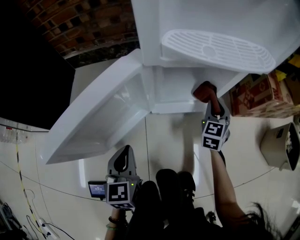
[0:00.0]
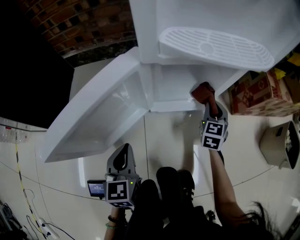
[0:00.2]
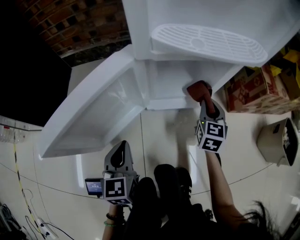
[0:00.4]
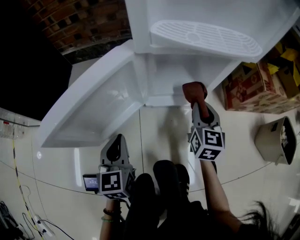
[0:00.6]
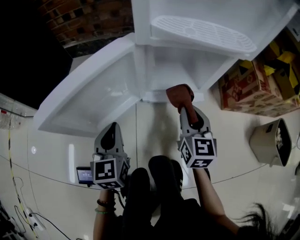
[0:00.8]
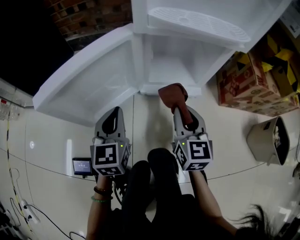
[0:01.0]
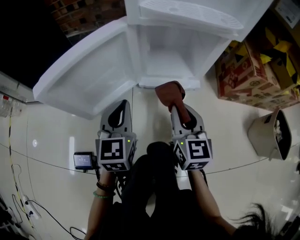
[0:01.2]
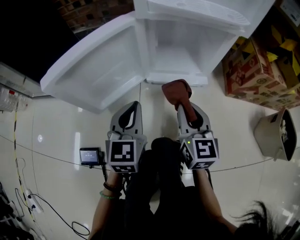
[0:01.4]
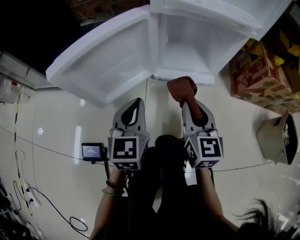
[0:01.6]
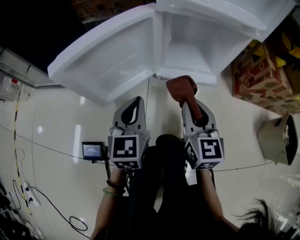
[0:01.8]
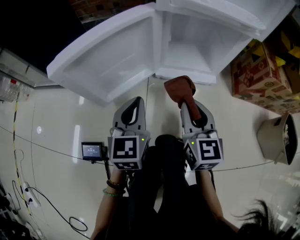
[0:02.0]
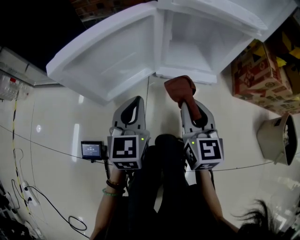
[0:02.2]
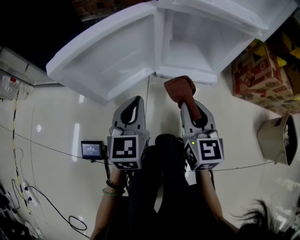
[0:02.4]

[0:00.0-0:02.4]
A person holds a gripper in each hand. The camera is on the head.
0:00.0 to 0:01.2: The right gripper travels backward, to the left and upward by roughly 20 cm, and rotates roughly 40 degrees; the left gripper is displaced to the right and upward by roughly 10 cm.
0:01.2 to 0:02.4: The grippers make only small movements.

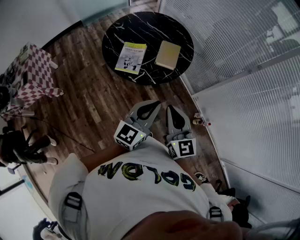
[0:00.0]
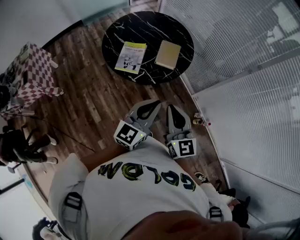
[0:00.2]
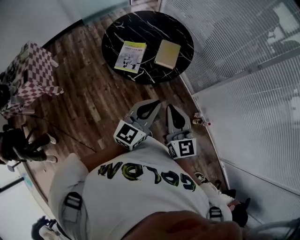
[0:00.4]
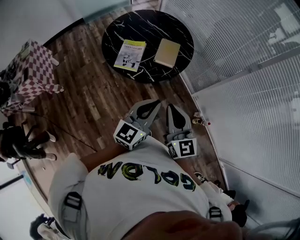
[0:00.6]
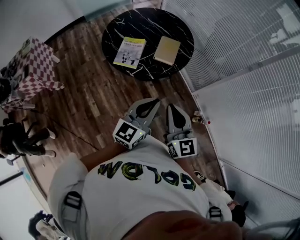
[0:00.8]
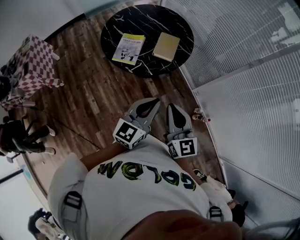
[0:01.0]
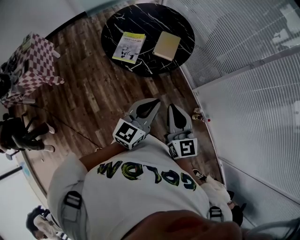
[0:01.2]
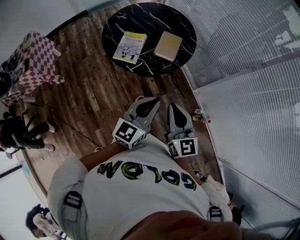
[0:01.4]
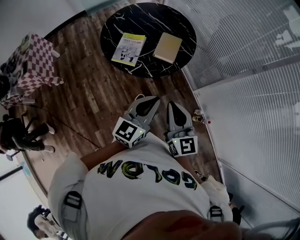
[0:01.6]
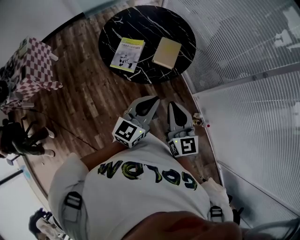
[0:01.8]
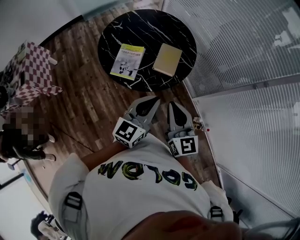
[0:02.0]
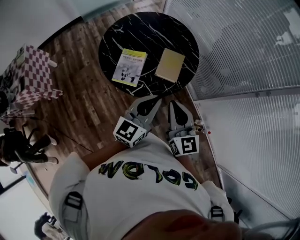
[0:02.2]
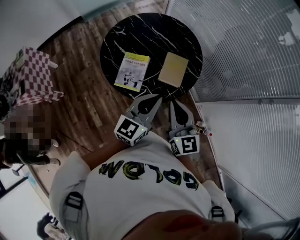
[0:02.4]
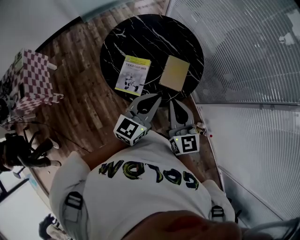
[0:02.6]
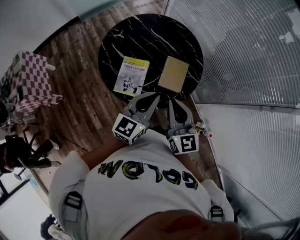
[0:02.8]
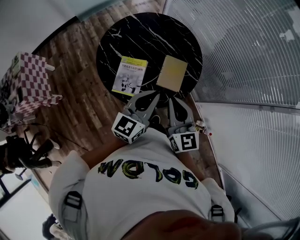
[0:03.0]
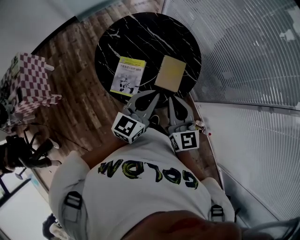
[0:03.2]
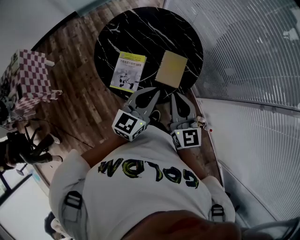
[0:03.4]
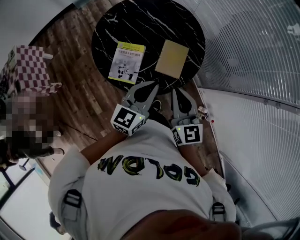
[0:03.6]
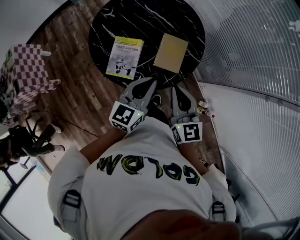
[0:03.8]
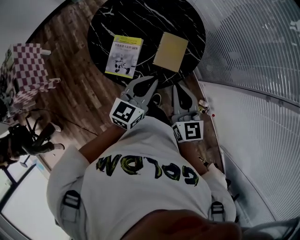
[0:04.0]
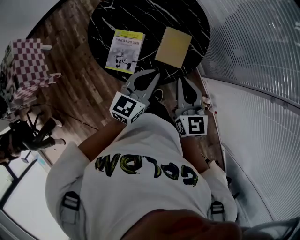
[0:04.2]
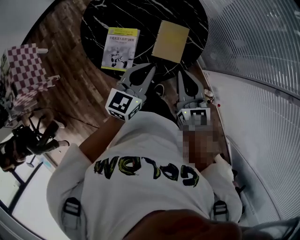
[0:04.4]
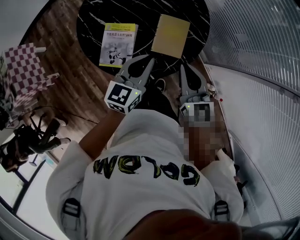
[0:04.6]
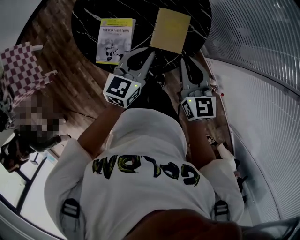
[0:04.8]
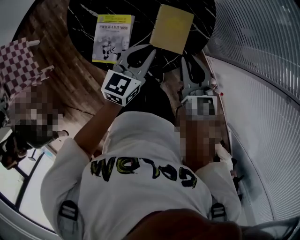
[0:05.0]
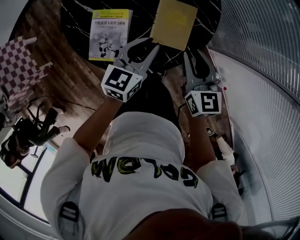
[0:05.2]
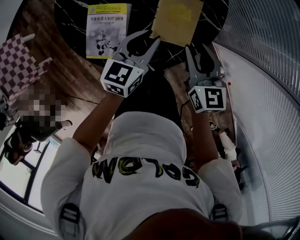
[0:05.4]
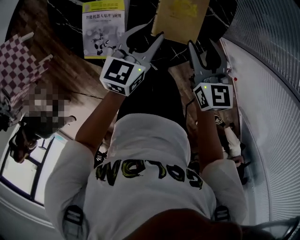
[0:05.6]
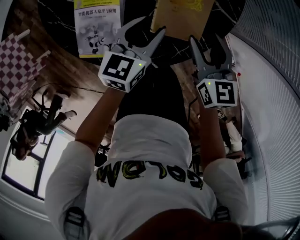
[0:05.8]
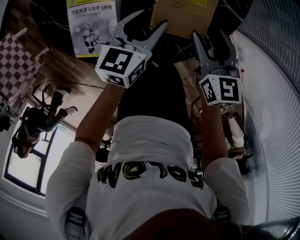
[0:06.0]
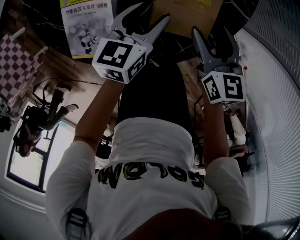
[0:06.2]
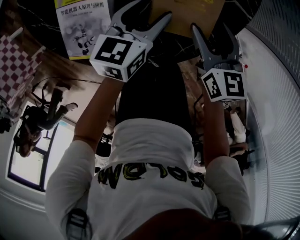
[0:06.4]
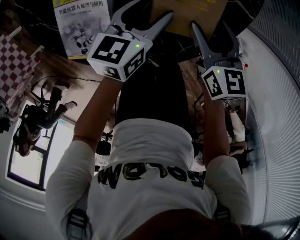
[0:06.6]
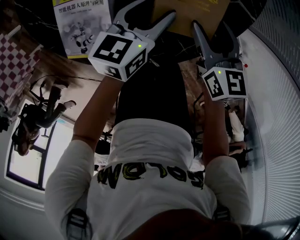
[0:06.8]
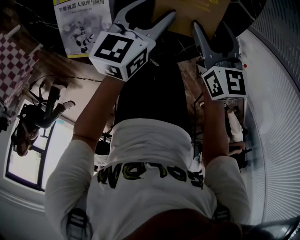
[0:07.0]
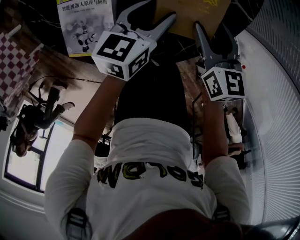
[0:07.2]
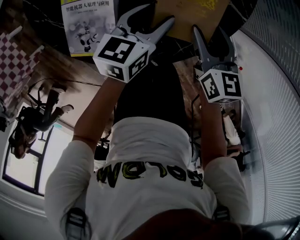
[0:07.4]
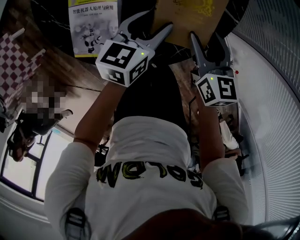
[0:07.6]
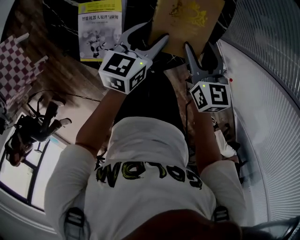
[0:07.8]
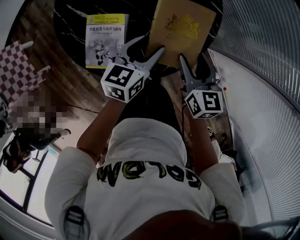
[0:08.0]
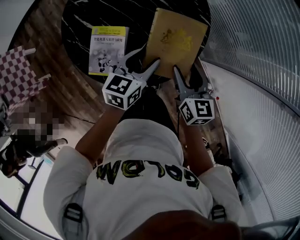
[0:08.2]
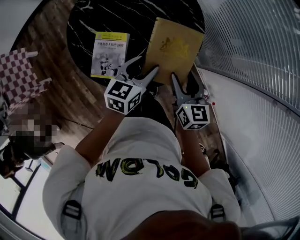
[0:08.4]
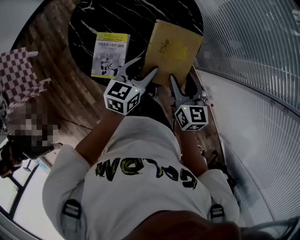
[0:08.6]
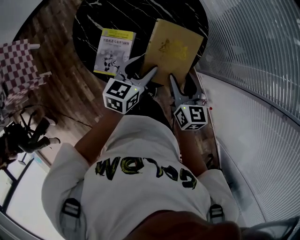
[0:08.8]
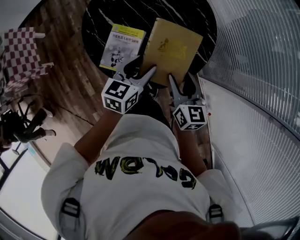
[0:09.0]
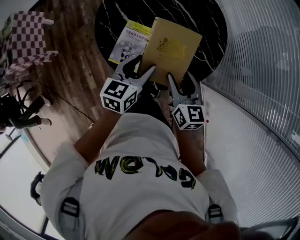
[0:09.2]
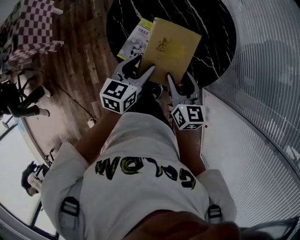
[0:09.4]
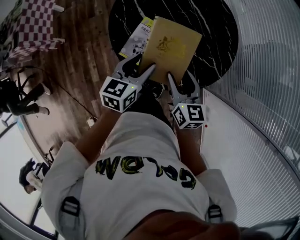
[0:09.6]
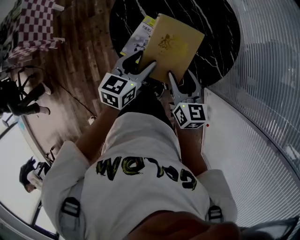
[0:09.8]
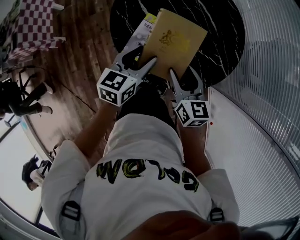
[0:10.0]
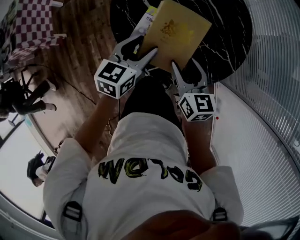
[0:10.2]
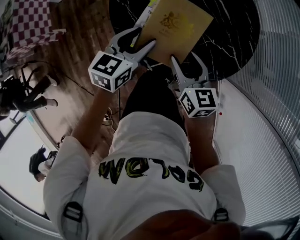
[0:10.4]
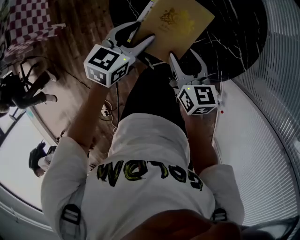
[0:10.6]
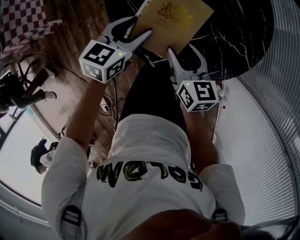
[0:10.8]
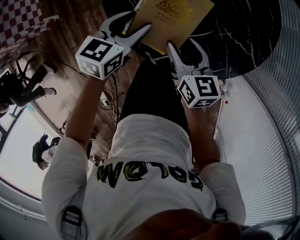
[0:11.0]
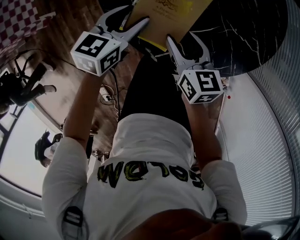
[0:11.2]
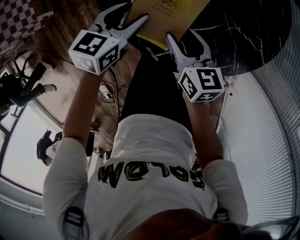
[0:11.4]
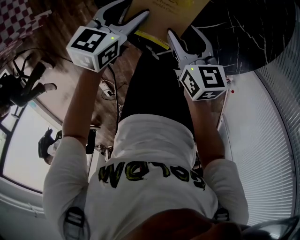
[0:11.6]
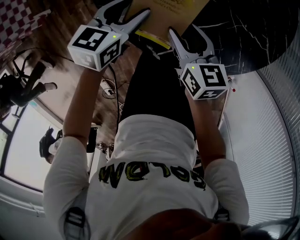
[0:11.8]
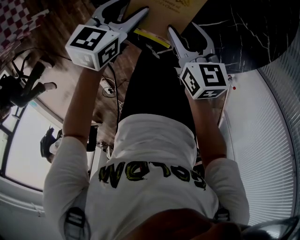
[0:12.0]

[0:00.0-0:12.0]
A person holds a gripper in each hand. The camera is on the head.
0:00.0 to 0:01.6: Both grippers travel together to the right, approximately 5 cm.
0:01.6 to 0:03.0: The two grippers go roughly 25 cm forward.
0:03.0 to 0:04.4: The left gripper goes about 10 cm downward, while the right gripper shifts about 10 cm downward and to the right.
0:04.4 to 0:06.0: The two grippers go some 30 cm downward and forward. The right gripper rotates approximately 20 degrees, and opens its fingers. The left gripper changes its angle by some 20 degrees, and opens up.
0:06.0 to 0:07.6: The grippers move only a little.
0:07.6 to 0:09.0: The two grippers go roughly 20 cm upward.
0:09.0 to 0:10.4: The two grippers go roughly 15 cm to the left and downward.
0:10.4 to 0:12.0: The two grippers go about 15 cm downward.

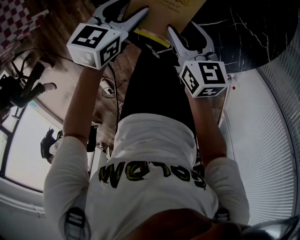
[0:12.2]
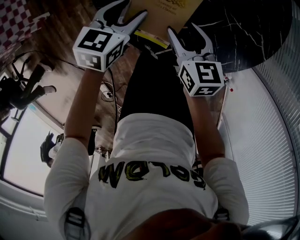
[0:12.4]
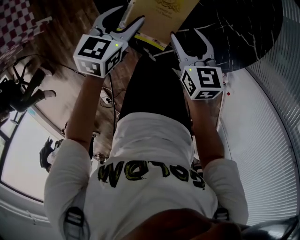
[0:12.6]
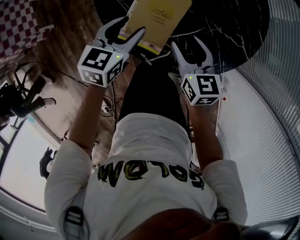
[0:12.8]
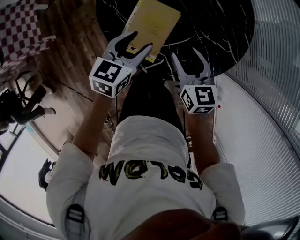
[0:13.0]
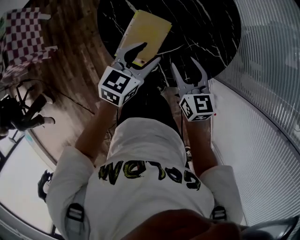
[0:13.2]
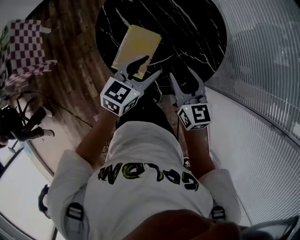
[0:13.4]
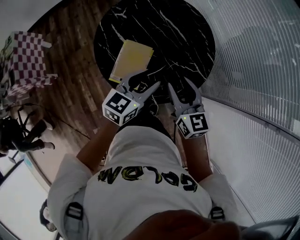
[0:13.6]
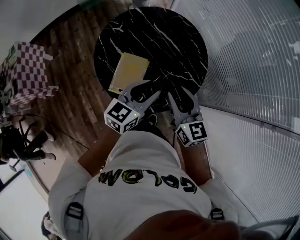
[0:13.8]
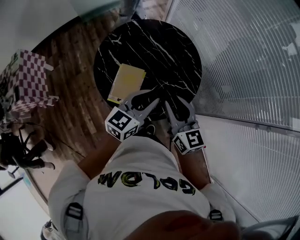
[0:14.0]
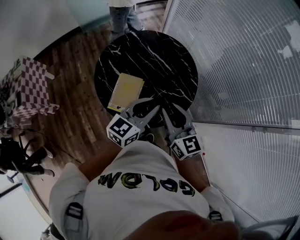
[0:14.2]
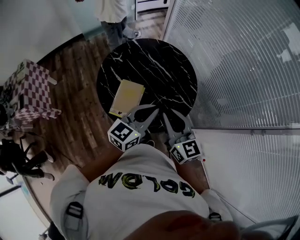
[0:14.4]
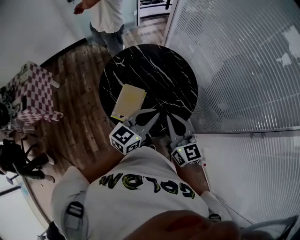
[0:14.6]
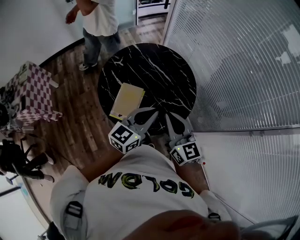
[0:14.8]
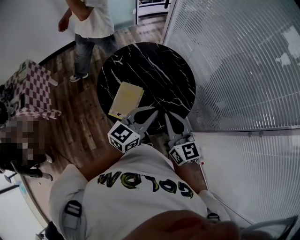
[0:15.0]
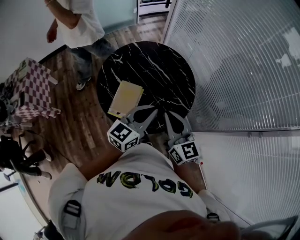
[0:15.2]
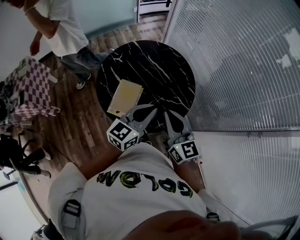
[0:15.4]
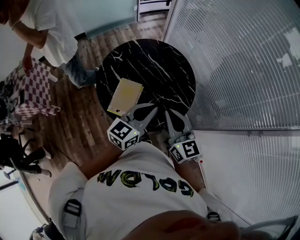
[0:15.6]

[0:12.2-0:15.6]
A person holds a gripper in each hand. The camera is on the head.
0:12.2 to 0:13.8: Both grippers move upward and to the right, roughly 35 cm. The left gripper rotates some 30 degrees. Meanwhile the right gripper swivels approximately 30 degrees.
0:13.8 to 0:15.6: The grippers both shift upward by roughly 10 cm. The left gripper closes up, while the right gripper closes up.

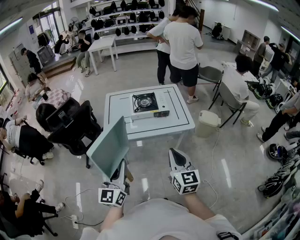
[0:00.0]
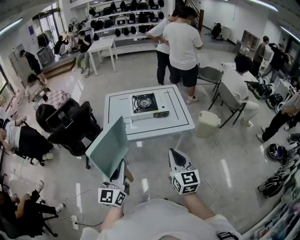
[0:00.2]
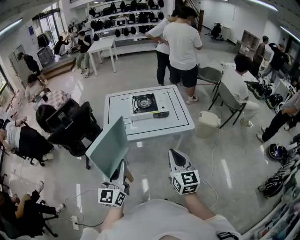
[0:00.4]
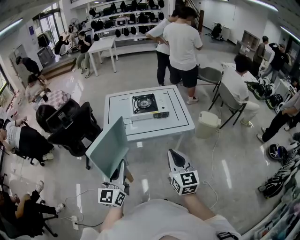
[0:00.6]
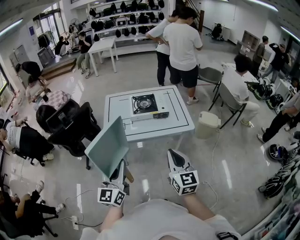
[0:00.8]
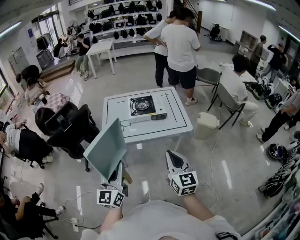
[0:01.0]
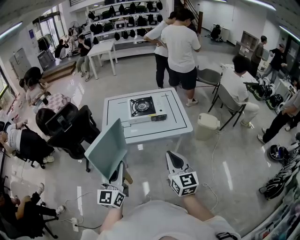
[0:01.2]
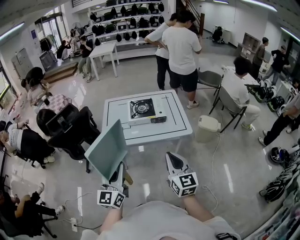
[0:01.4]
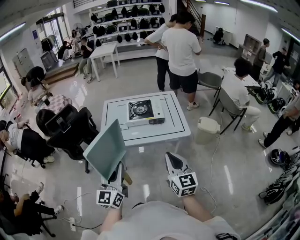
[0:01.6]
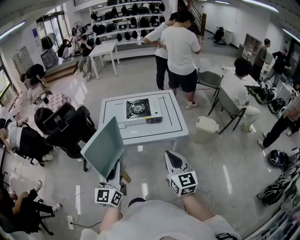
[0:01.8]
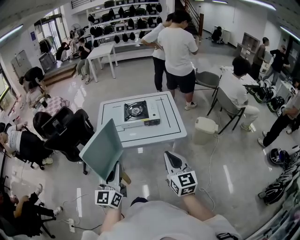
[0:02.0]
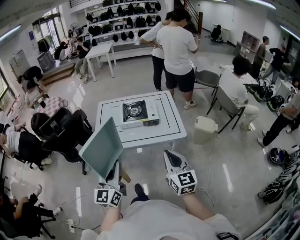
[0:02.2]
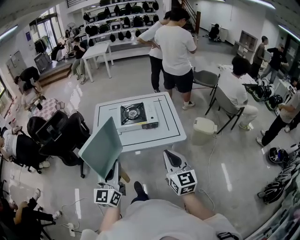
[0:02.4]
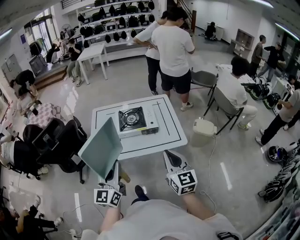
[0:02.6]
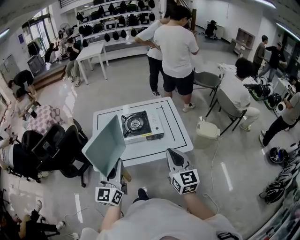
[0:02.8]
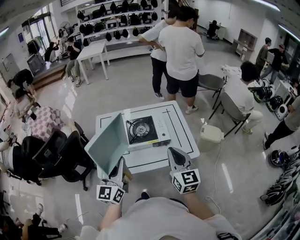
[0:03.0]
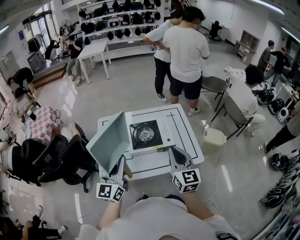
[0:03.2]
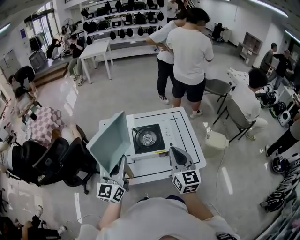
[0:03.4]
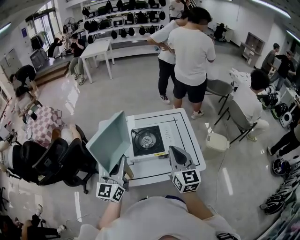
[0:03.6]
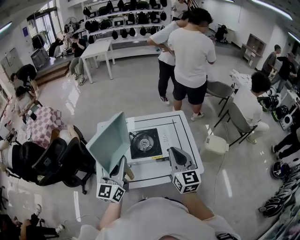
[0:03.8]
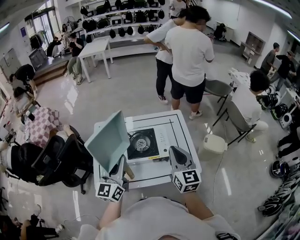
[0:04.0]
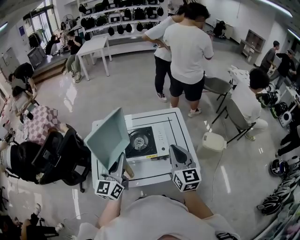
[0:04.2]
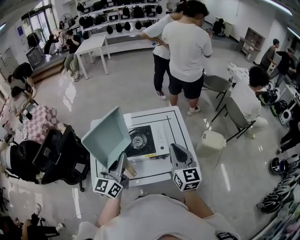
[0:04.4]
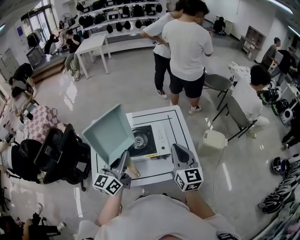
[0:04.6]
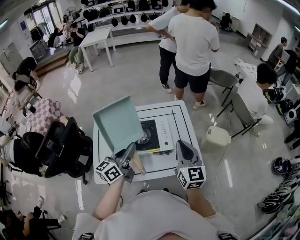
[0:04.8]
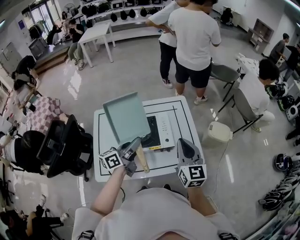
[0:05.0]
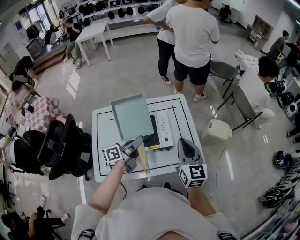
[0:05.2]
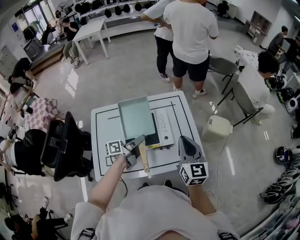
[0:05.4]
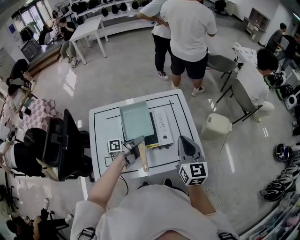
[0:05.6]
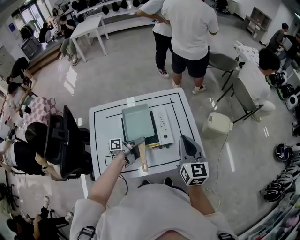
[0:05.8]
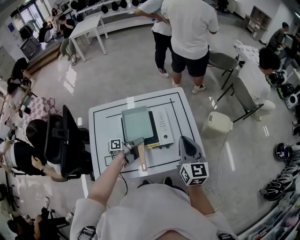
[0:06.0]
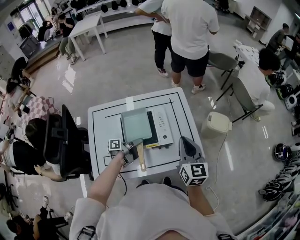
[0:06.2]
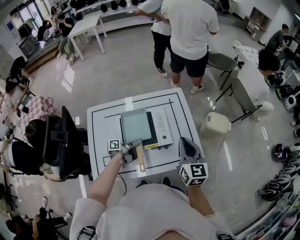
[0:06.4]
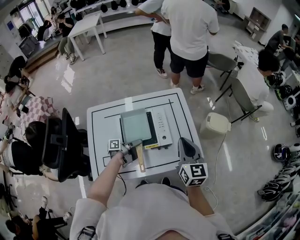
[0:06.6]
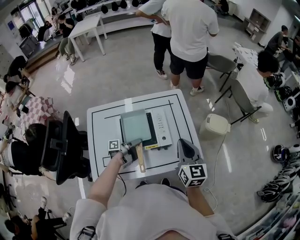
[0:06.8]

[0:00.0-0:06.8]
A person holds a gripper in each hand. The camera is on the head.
0:00.0 to 0:01.4: The grippers stay close to where they were, moving slightly.
0:01.4 to 0:02.8: The grippers both shift forward by approximately 20 cm.
0:02.8 to 0:04.0: The two grippers go roughly 20 cm forward.
0:04.0 to 0:05.4: The left gripper travels downward, forward and to the right by about 25 cm, and twists approximately 70 degrees counterclockwise, seen from behind, while the right gripper travels to the right by approximately 5 cm.
0:05.4 to 0:06.8: The left gripper is displaced downward by about 10 cm, and turns by approximately 20 degrees.
